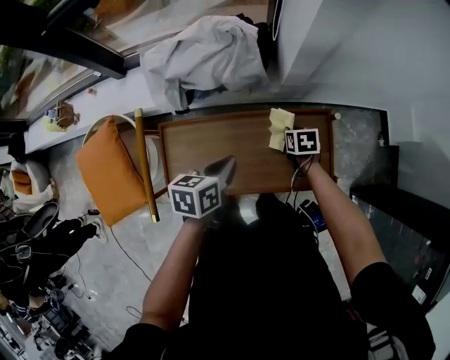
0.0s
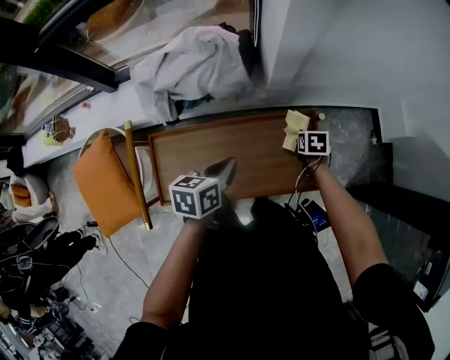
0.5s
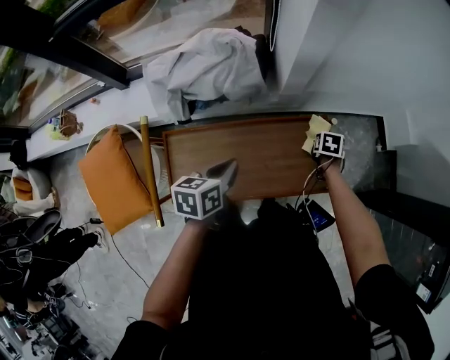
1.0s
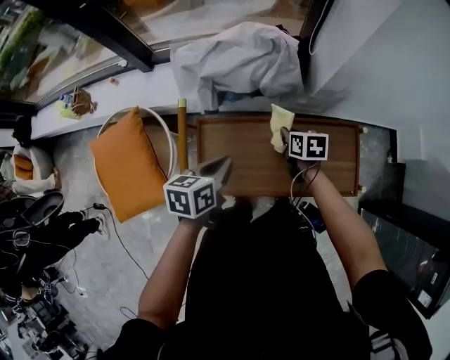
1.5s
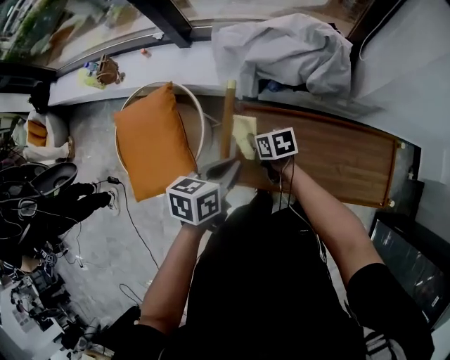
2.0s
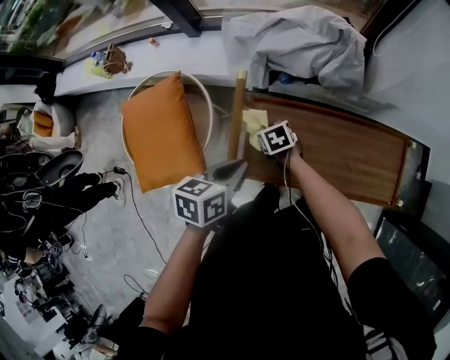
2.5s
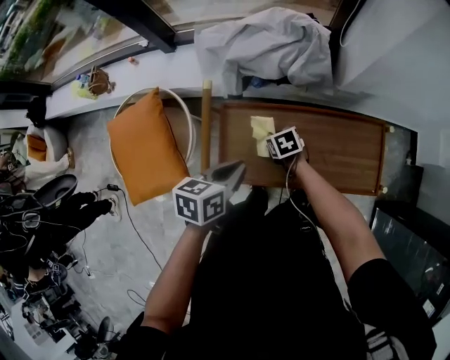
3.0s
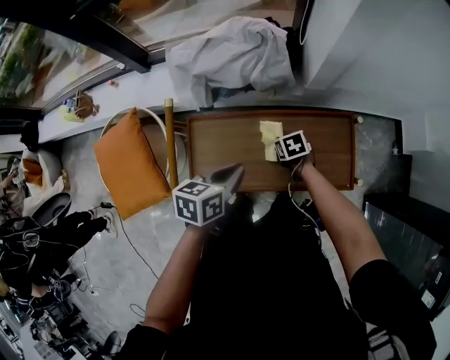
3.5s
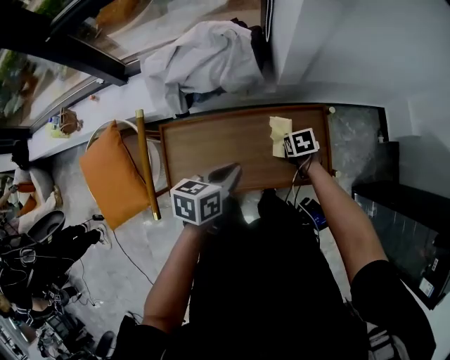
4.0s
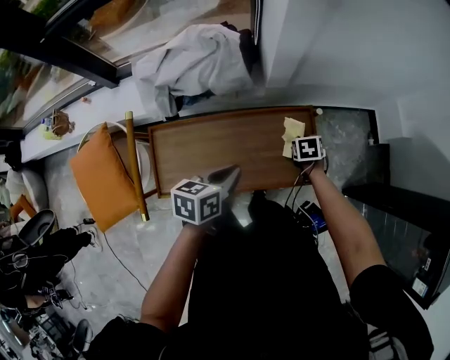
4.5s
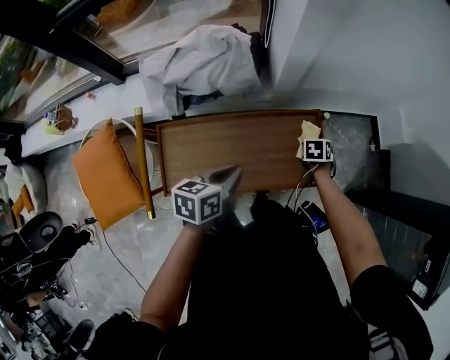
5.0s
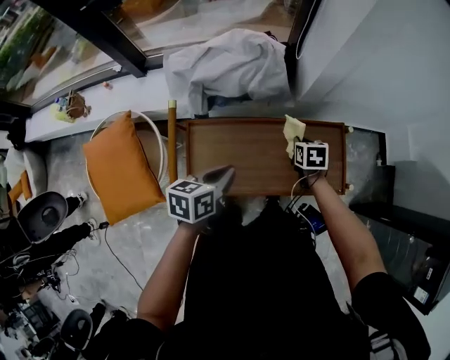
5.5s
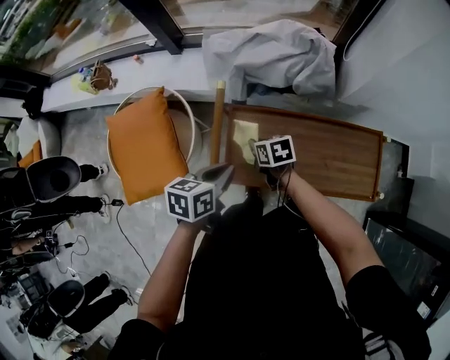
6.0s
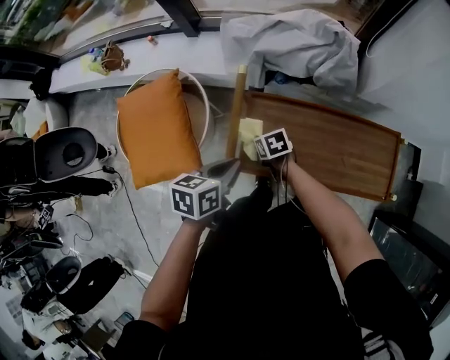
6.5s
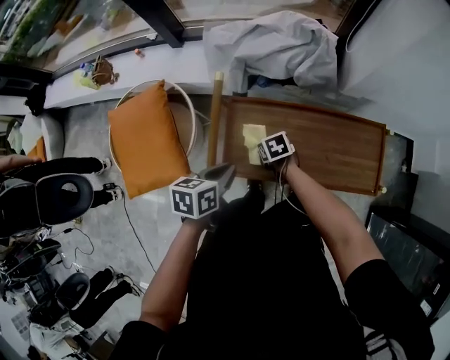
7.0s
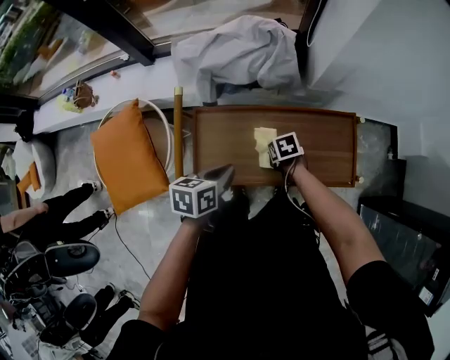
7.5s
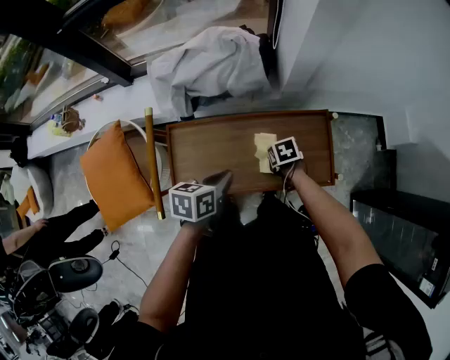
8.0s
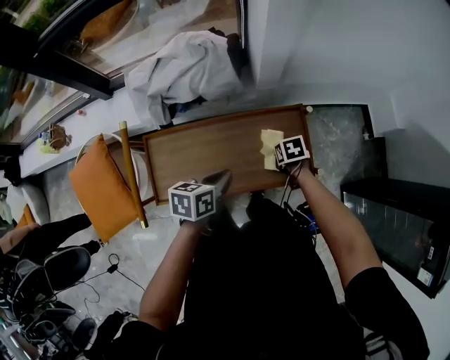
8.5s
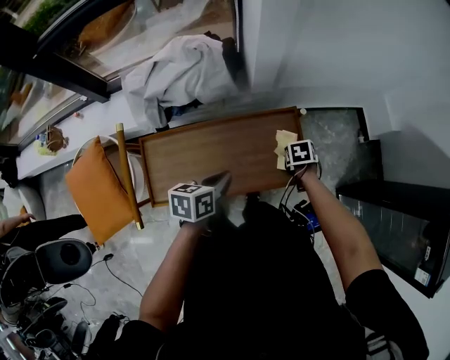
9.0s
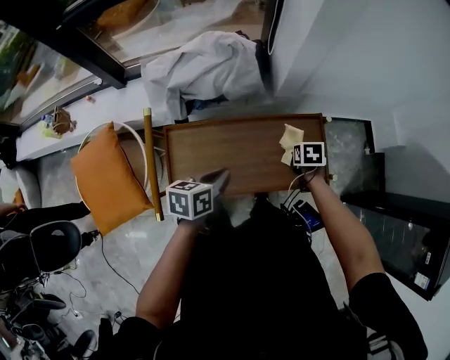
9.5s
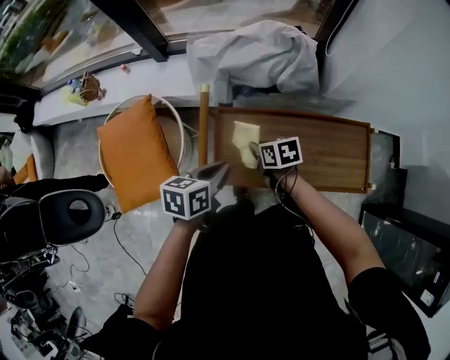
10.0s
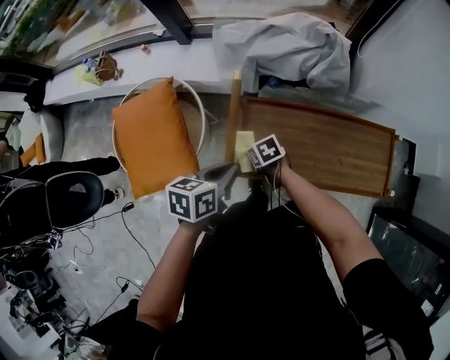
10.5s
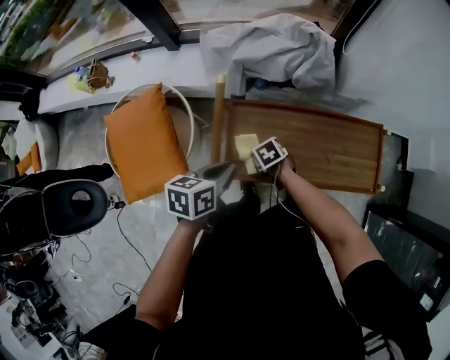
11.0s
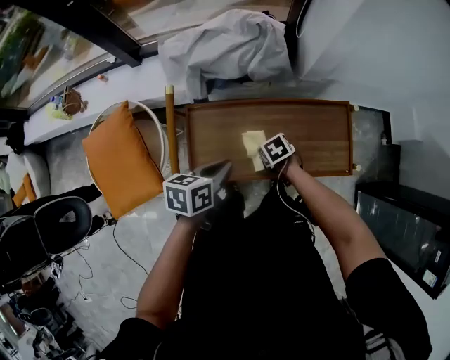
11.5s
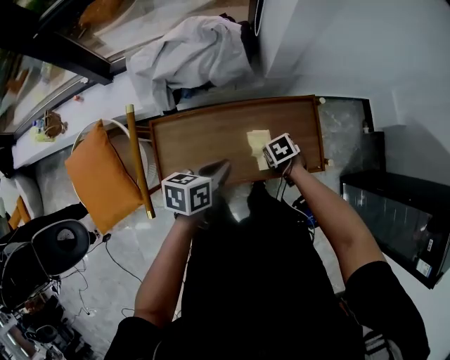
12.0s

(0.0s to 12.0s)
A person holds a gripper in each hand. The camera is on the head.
0.0s - 2.0s: The right gripper ends up about 40 cm from where it was, and changes its angle by about 30 degrees. Meanwhile the left gripper shifts by approximately 25 cm.
2.0s - 4.0s: The left gripper ends up roughly 25 cm from where it was. Meanwhile the right gripper shifts by some 40 cm, and swivels roughly 30 degrees.
4.0s - 6.0s: The left gripper ends up some 25 cm from where it was. Meanwhile the right gripper ends up roughly 40 cm from where it was, and changes its angle by approximately 20 degrees.
6.0s - 8.0s: The left gripper travels to the right by roughly 20 cm. Meanwhile the right gripper moves to the right, about 30 cm, and turns by roughly 20 degrees.
8.0s - 10.0s: The left gripper changes place by some 20 cm. The right gripper moves approximately 30 cm, and swivels approximately 20 degrees.
10.0s - 12.0s: The left gripper moves approximately 20 cm. Meanwhile the right gripper changes place by about 30 cm, and turns by approximately 30 degrees.

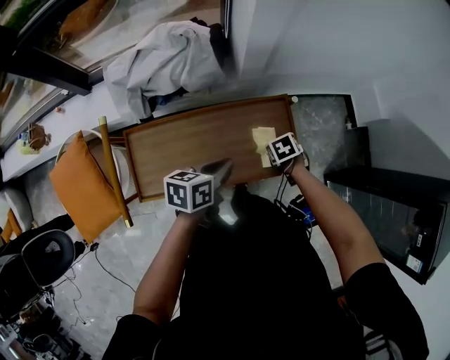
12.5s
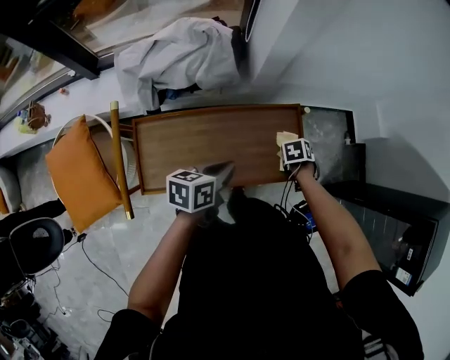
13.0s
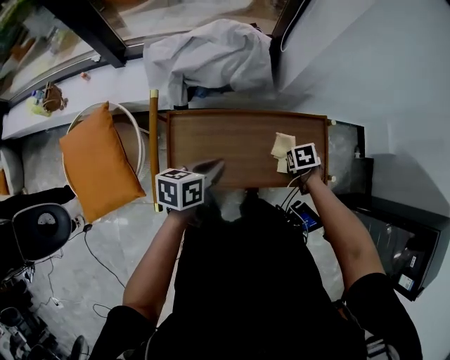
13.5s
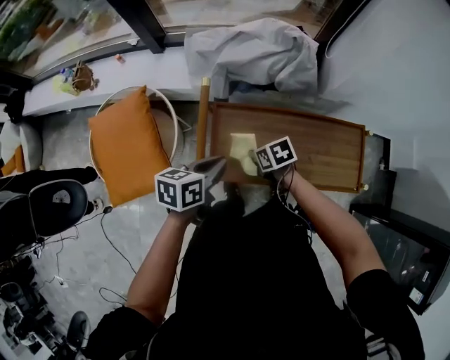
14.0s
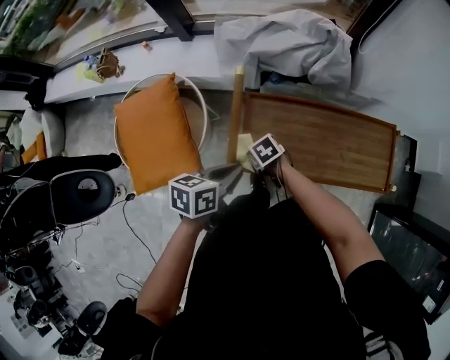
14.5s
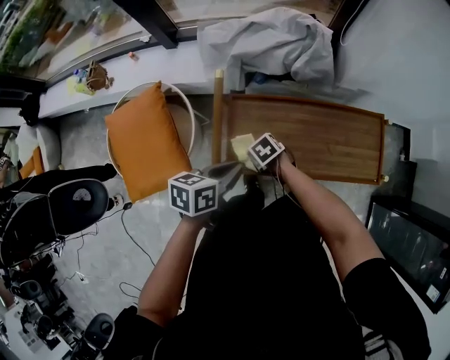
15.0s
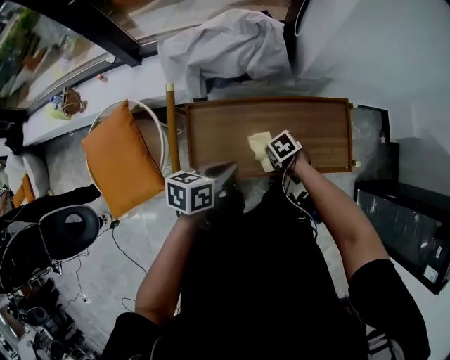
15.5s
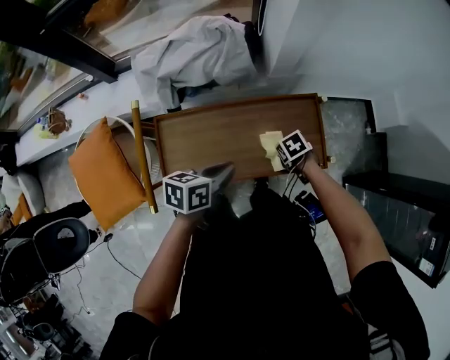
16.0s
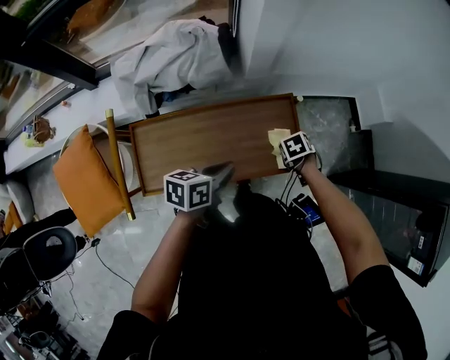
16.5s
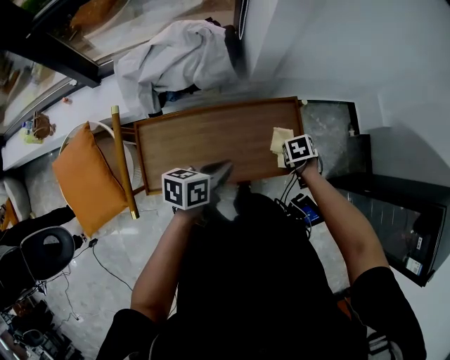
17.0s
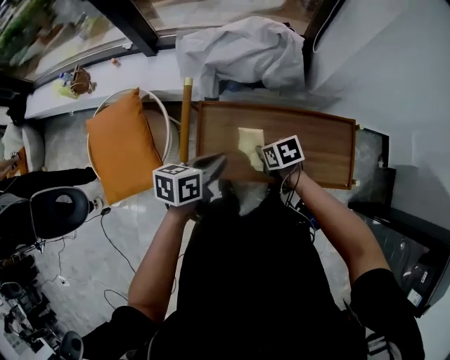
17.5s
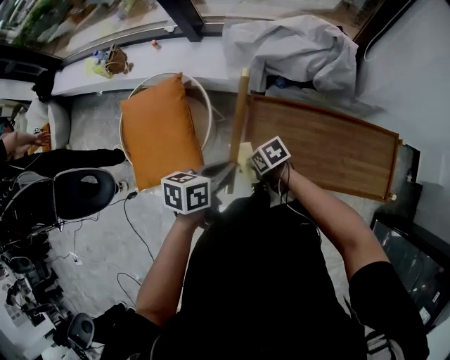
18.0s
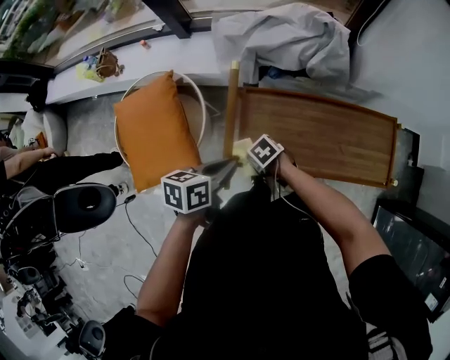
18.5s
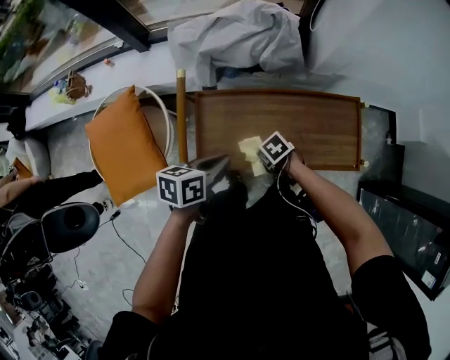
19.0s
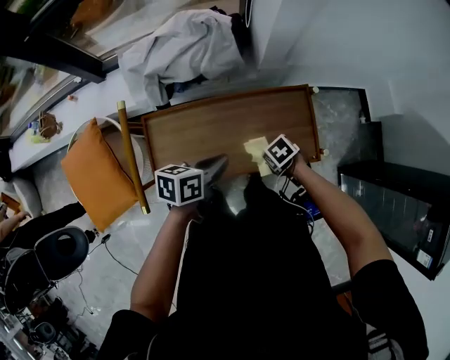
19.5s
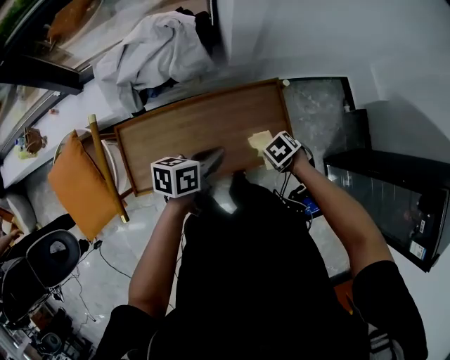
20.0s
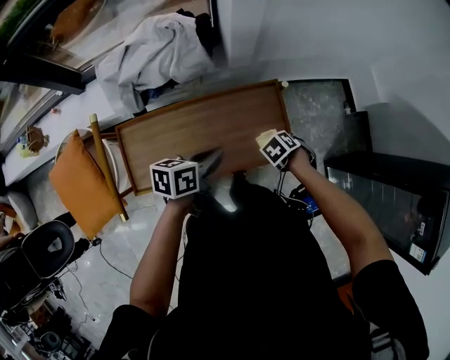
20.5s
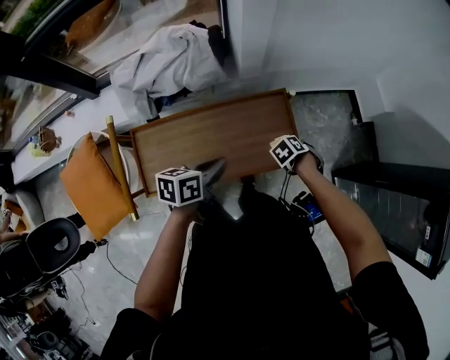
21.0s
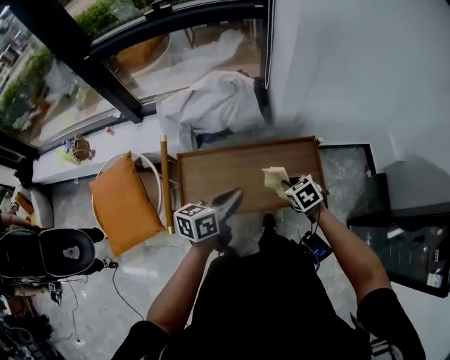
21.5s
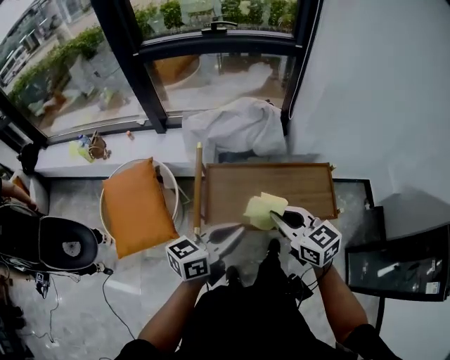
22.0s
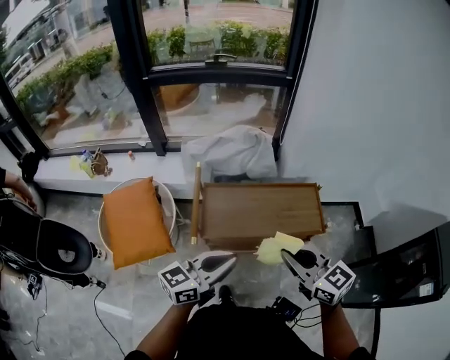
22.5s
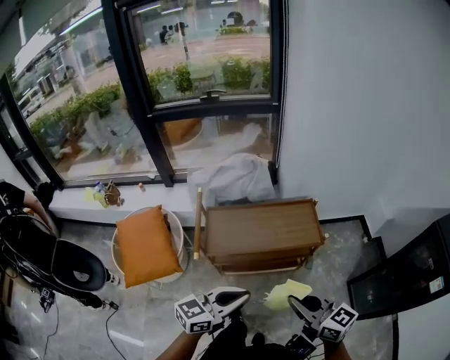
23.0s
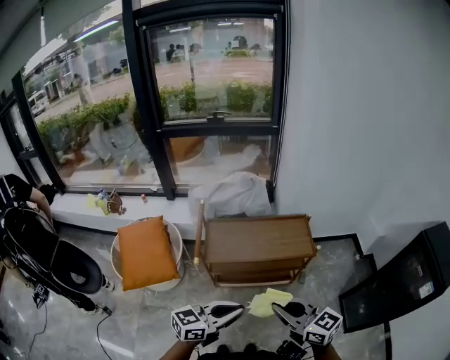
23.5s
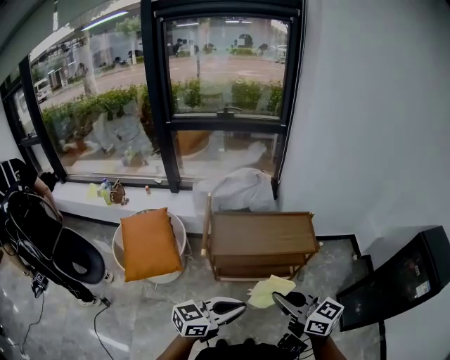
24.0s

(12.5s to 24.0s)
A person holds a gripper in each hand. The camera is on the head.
12.5s - 14.5s: The right gripper ends up some 50 cm from where it was, and rotates some 30 degrees. Meanwhile the left gripper moves about 35 cm.
14.5s - 16.5s: The right gripper changes place by roughly 60 cm, and swivels some 40 degrees; the left gripper shifts by approximately 35 cm.
16.5s - 18.5s: The right gripper goes upward and returns, about 5 cm each way, and changes its angle by approximately 40 degrees; the left gripper shifts by roughly 35 cm.
18.5s - 20.0s: The left gripper shifts by some 35 cm, and swivels roughly 20 degrees; the right gripper ends up about 50 cm from where it was, and changes its angle by roughly 30 degrees.
20.0s - 22.0s: The right gripper shifts approximately 35 cm upward, and tips its fingers upward by approximately 60 degrees. Meanwhile the left gripper ends up some 35 cm from where it was, and rotates about 40 degrees.
22.0s - 24.0s: The grippers both shift backward by some 30 cm.

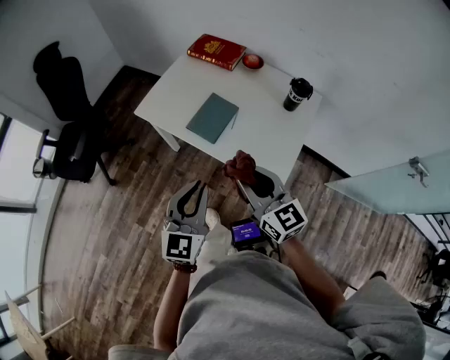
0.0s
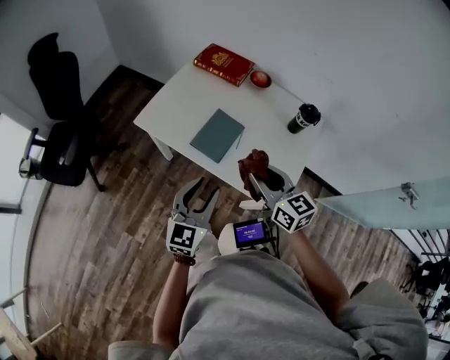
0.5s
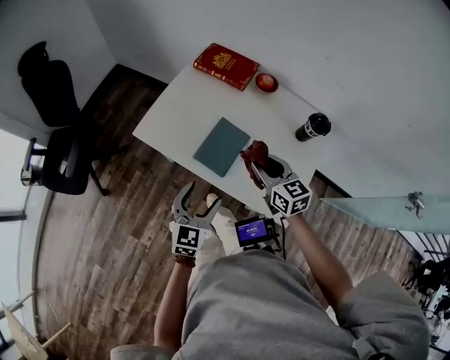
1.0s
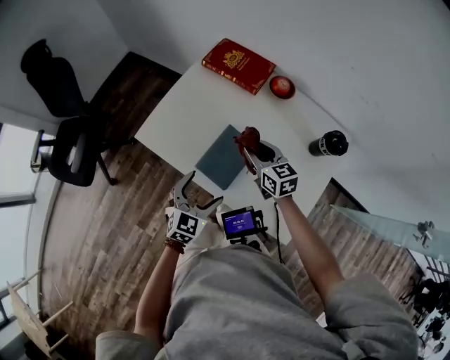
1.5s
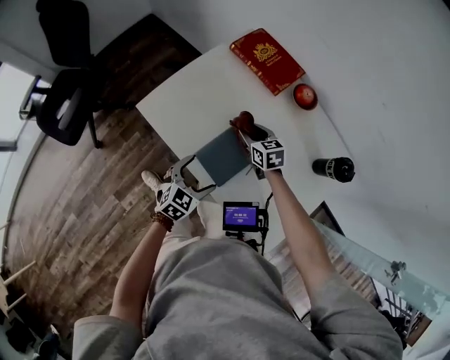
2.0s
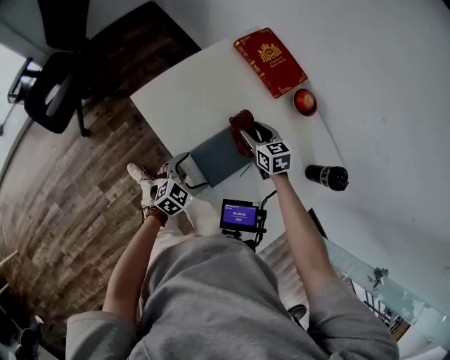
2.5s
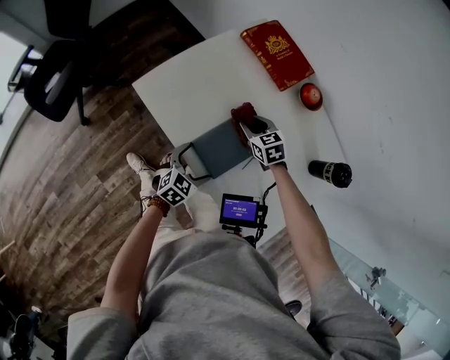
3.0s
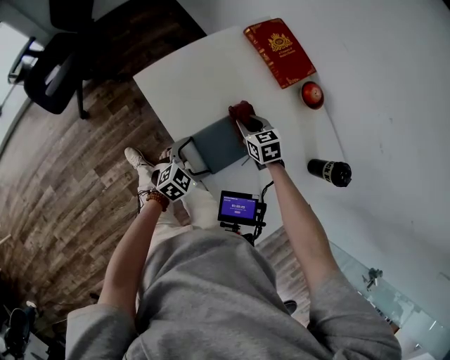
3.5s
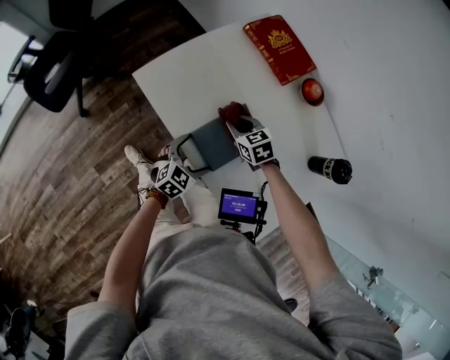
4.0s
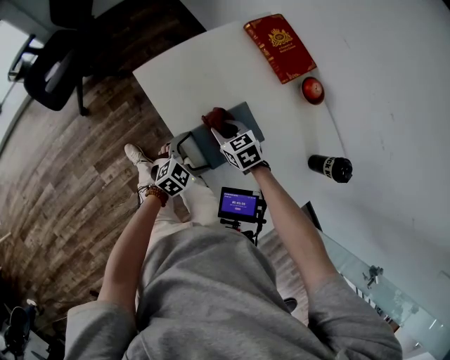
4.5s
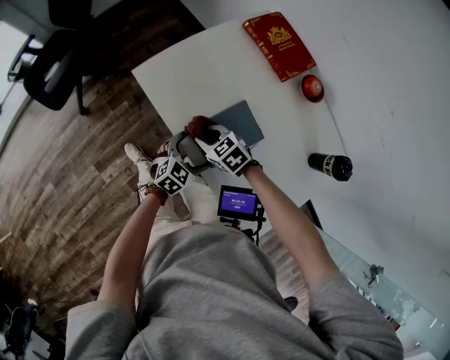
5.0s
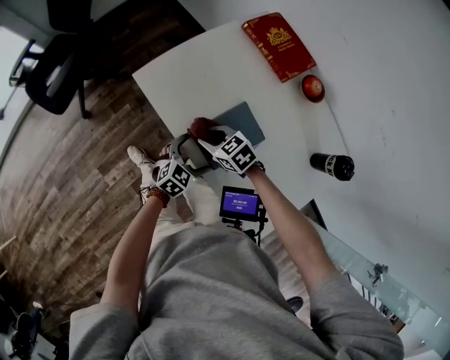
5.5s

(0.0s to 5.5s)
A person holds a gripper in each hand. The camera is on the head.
0.0s - 2.0s: The right gripper travels forward and downward by roughly 50 cm, and angles its fingers downward, by roughly 30 degrees, while the left gripper shifts roughly 40 cm downward and forward, tips its fingers downward by roughly 30 degrees, and opens.
2.0s - 3.5s: The left gripper moves downward, about 5 cm.
3.5s - 5.5s: The right gripper heads to the left and backward, covering approximately 15 cm, and changes its angle by about 20 degrees.
